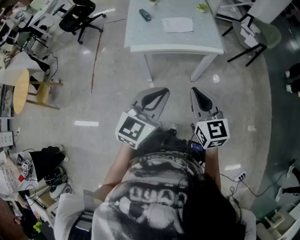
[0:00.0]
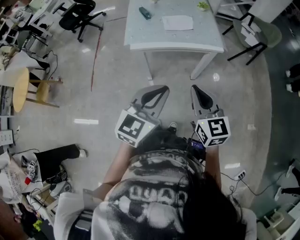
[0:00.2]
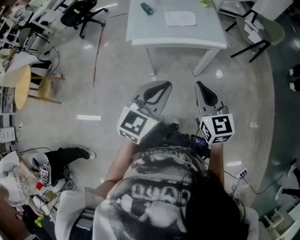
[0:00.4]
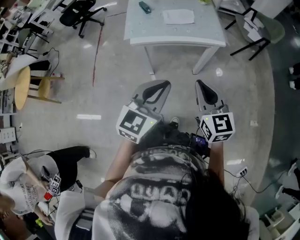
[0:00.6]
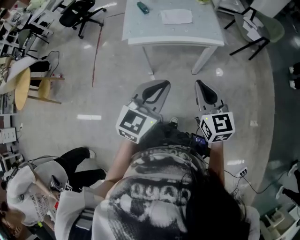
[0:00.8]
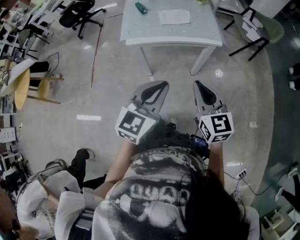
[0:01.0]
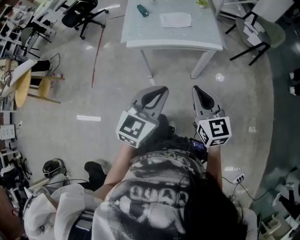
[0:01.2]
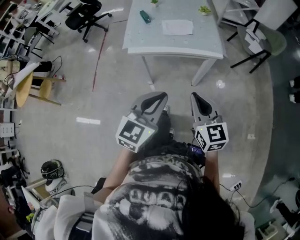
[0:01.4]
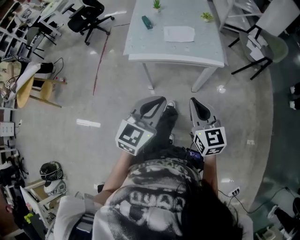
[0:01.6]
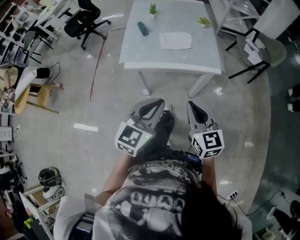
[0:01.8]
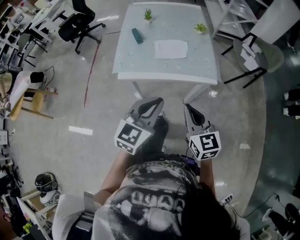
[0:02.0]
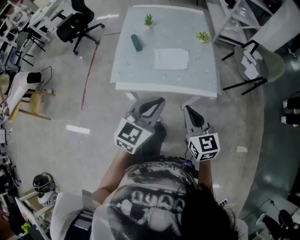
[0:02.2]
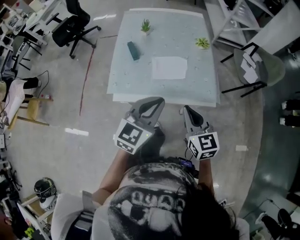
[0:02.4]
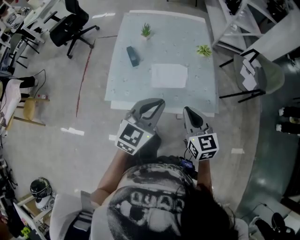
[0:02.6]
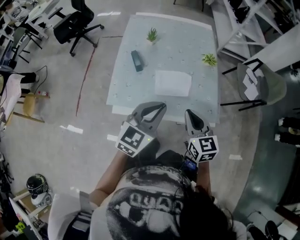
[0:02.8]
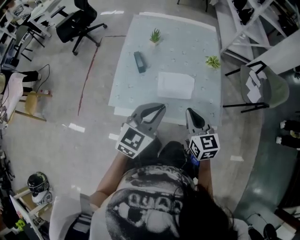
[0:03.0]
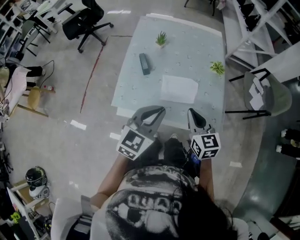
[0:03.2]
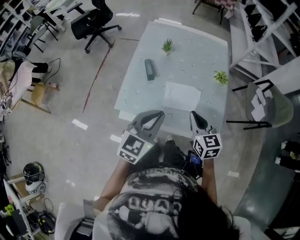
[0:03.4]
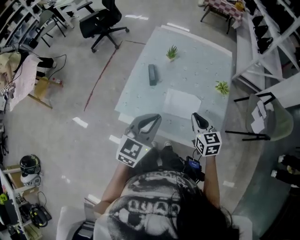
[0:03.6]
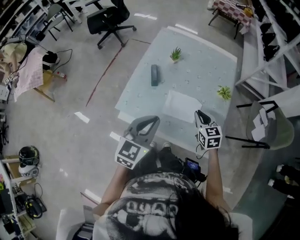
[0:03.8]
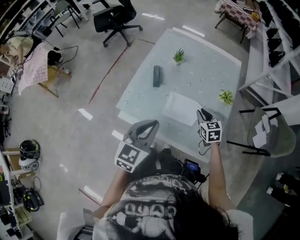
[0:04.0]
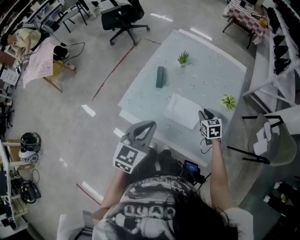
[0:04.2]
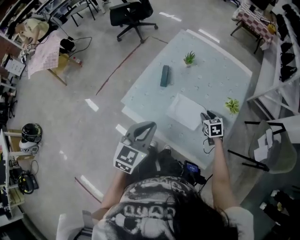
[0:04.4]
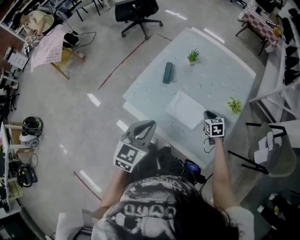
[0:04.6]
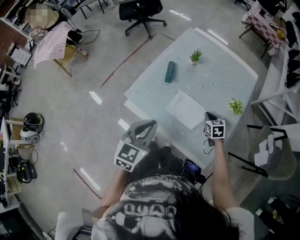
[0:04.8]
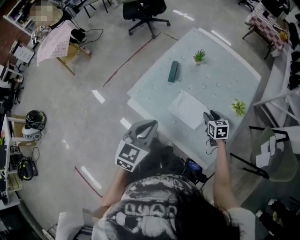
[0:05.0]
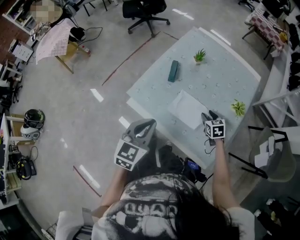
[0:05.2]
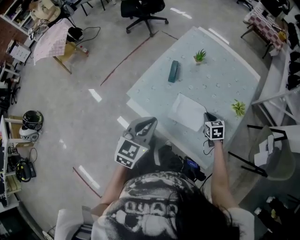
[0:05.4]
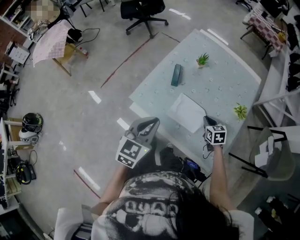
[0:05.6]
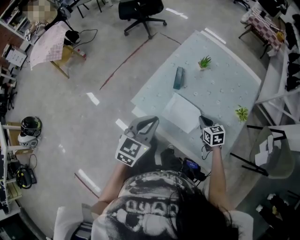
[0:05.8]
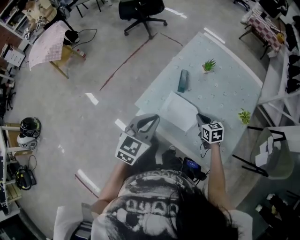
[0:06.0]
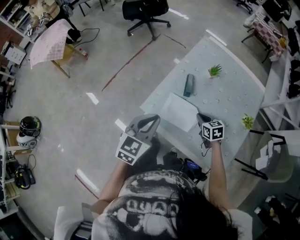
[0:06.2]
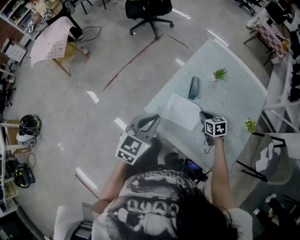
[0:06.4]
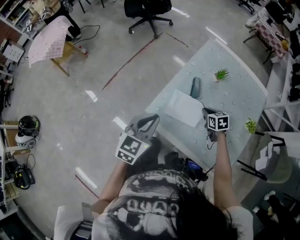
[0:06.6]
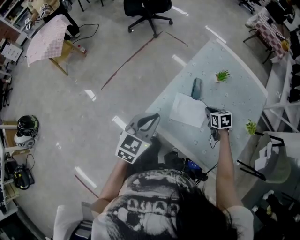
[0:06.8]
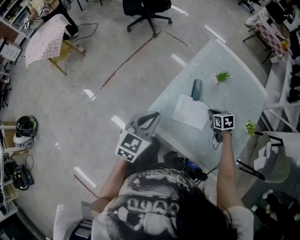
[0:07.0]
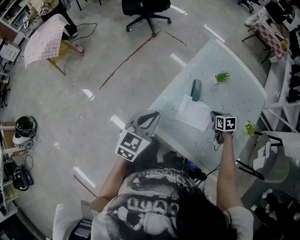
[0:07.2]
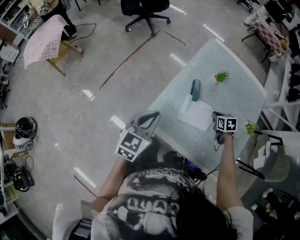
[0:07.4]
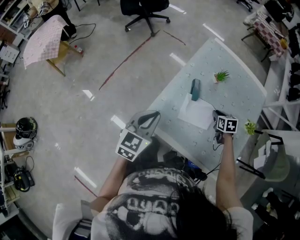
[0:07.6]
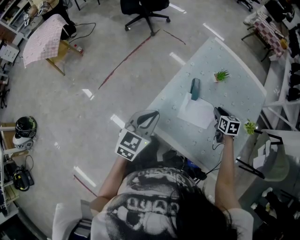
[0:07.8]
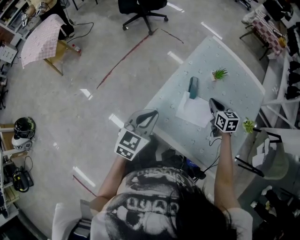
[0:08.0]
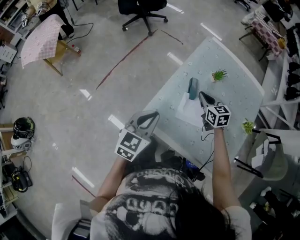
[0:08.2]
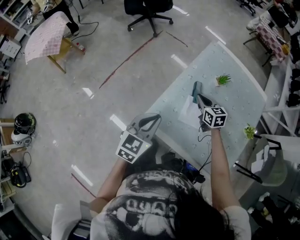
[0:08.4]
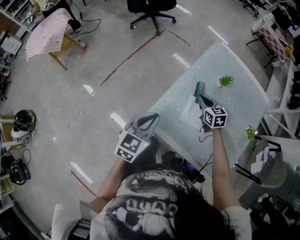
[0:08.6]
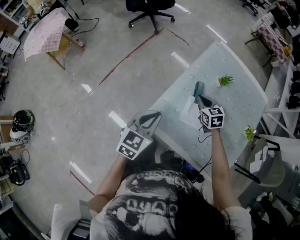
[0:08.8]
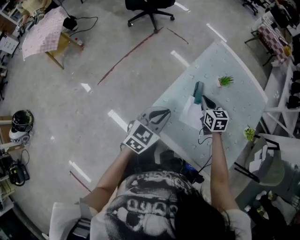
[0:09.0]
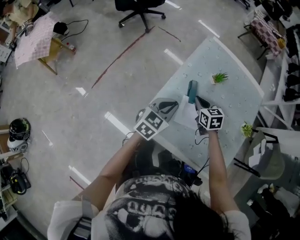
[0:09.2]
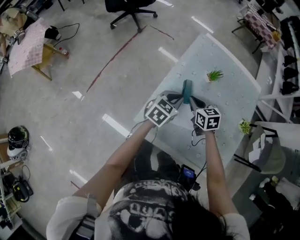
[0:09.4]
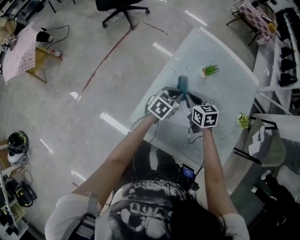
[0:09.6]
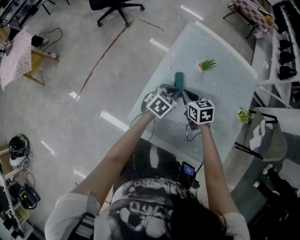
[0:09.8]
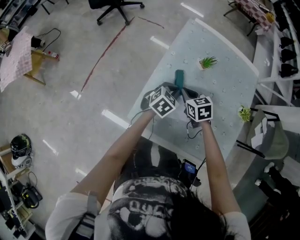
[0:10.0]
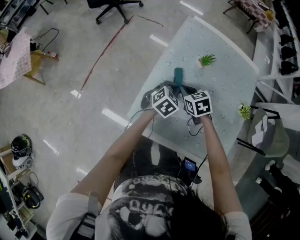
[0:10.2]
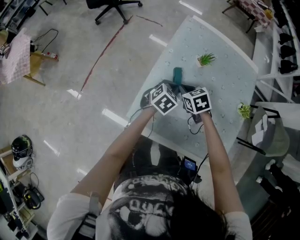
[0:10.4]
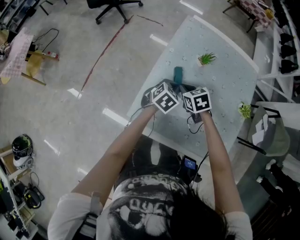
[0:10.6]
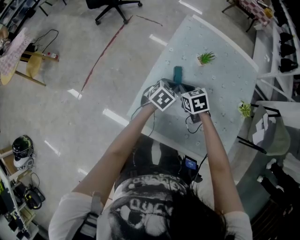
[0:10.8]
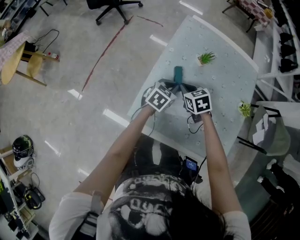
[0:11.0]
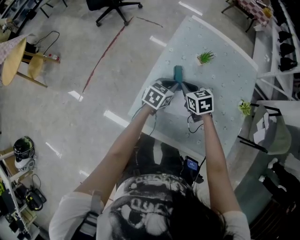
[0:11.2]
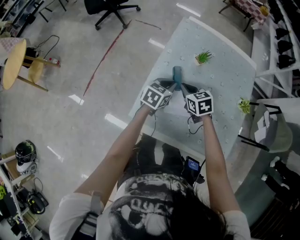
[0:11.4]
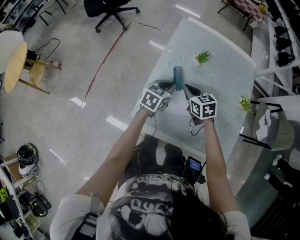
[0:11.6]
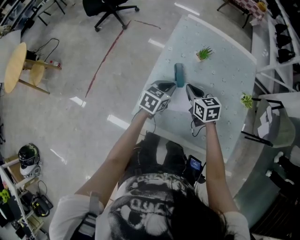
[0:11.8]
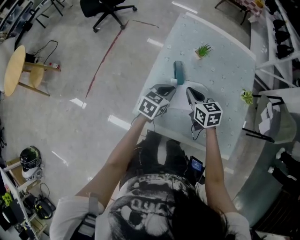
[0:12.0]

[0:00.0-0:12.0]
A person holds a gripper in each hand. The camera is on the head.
0:00.0 to 0:01.6: The left gripper changes place by about 5 cm. The right gripper ends up some 5 cm from where it was.
0:01.6 to 0:03.0: The two grippers go roughly 35 cm forward.
0:03.0 to 0:04.4: The right gripper changes place by some 30 cm, changes its angle by some 40 degrees, and opens. Meanwhile the left gripper rotates approximately 30 degrees.
0:04.4 to 0:06.0: The right gripper moves to the left, about 15 cm, and closes up. Meanwhile the left gripper shifts some 10 cm to the left and forward.
0:06.0 to 0:07.6: The right gripper shifts roughly 10 cm forward; the left gripper moves to the left and forward, approximately 10 cm.
0:07.6 to 0:09.0: The right gripper travels to the left and upward by approximately 15 cm, and changes its angle by roughly 20 degrees.
0:09.0 to 0:10.4: The left gripper goes roughly 20 cm forward, to the right and downward, and rotates about 30 degrees.
0:10.4 to 0:12.0: The right gripper shifts some 10 cm upward and backward, and changes its angle by roughly 30 degrees. Meanwhile the left gripper moves backward, approximately 5 cm.

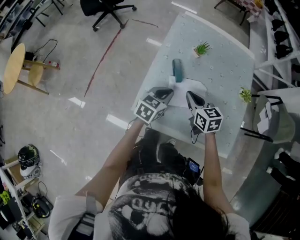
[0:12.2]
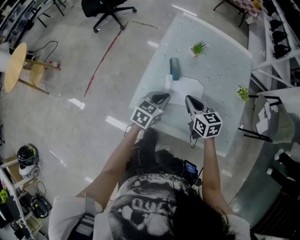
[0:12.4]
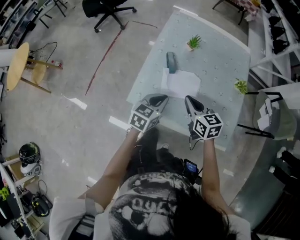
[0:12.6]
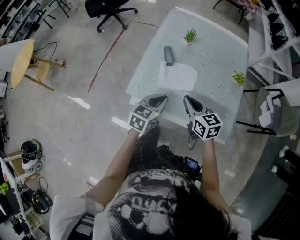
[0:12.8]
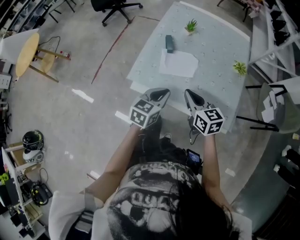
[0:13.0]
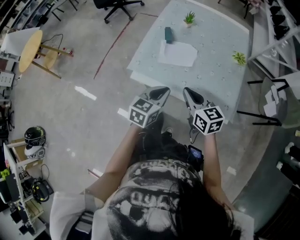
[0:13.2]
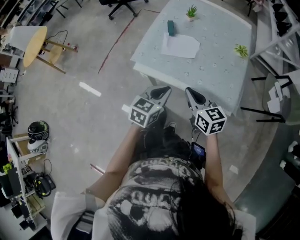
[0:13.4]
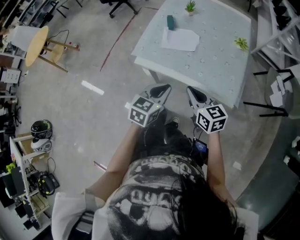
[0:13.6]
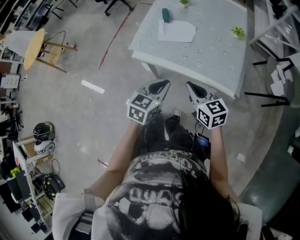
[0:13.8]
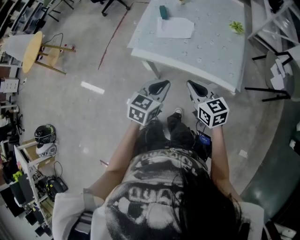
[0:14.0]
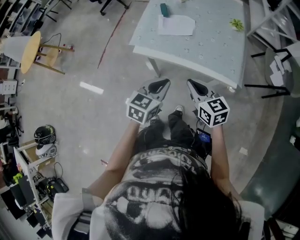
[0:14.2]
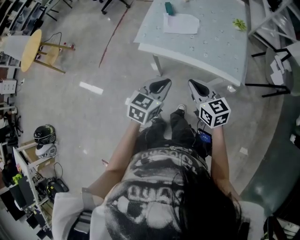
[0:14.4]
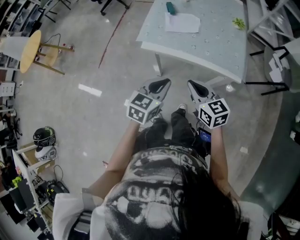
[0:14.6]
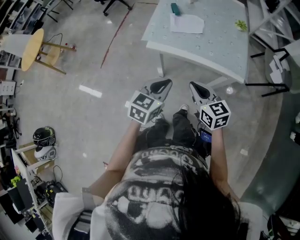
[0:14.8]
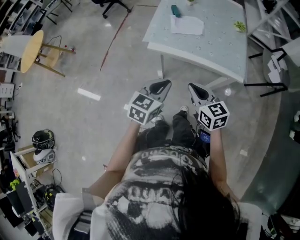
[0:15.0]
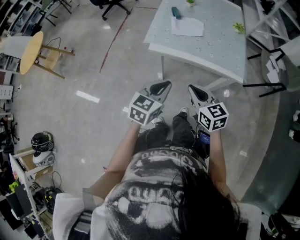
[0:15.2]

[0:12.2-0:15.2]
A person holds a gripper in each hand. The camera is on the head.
0:12.2 to 0:13.8: The two grippers go approximately 35 cm backward.
0:13.8 to 0:15.2: Both grippers move to the left and backward, some 15 cm.

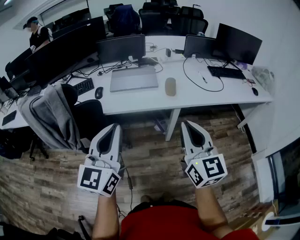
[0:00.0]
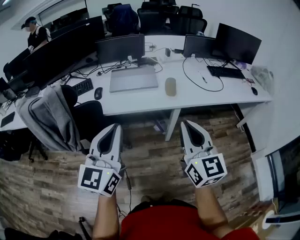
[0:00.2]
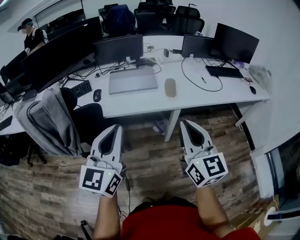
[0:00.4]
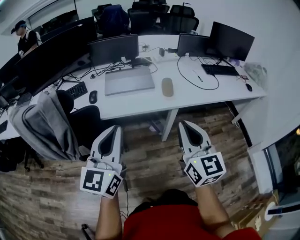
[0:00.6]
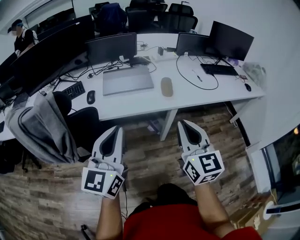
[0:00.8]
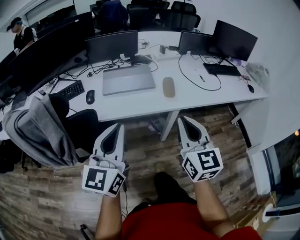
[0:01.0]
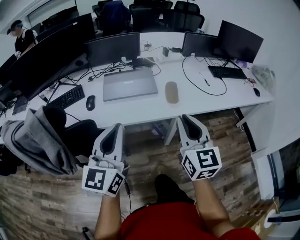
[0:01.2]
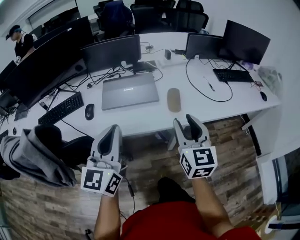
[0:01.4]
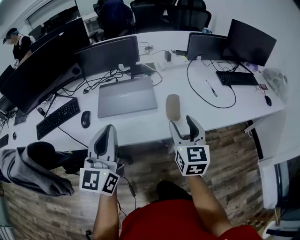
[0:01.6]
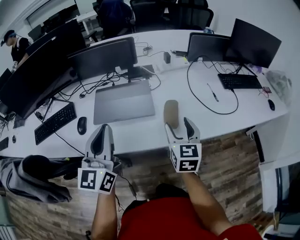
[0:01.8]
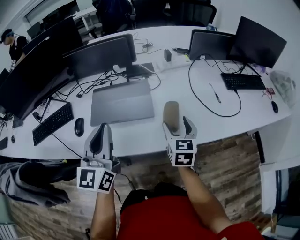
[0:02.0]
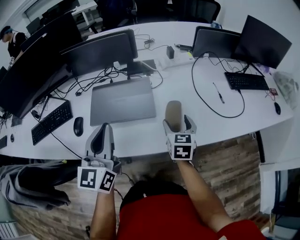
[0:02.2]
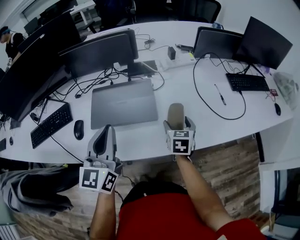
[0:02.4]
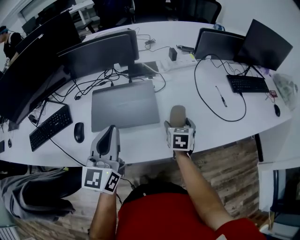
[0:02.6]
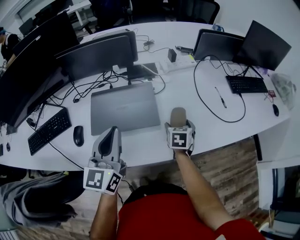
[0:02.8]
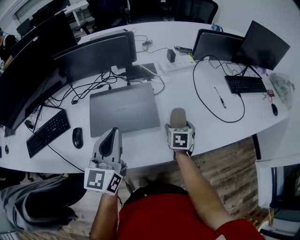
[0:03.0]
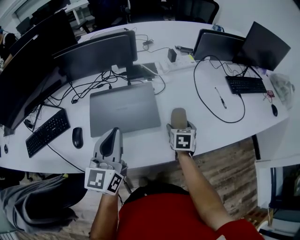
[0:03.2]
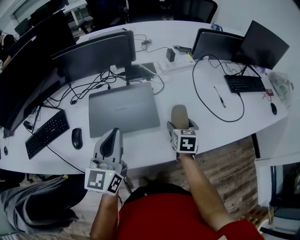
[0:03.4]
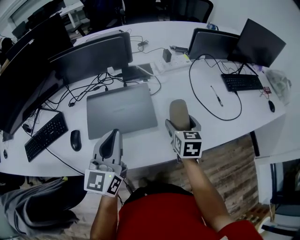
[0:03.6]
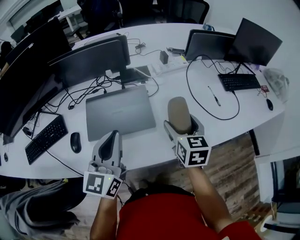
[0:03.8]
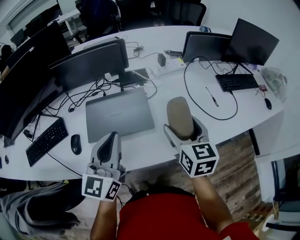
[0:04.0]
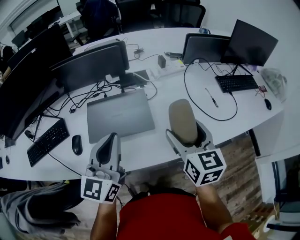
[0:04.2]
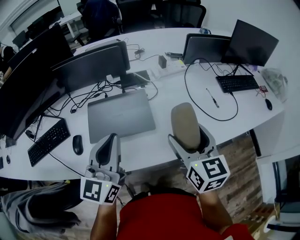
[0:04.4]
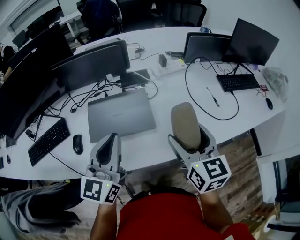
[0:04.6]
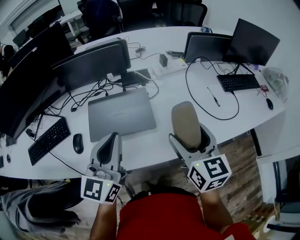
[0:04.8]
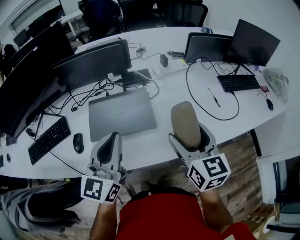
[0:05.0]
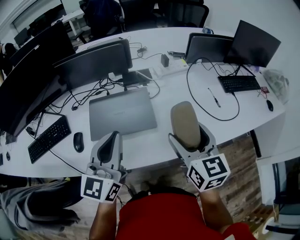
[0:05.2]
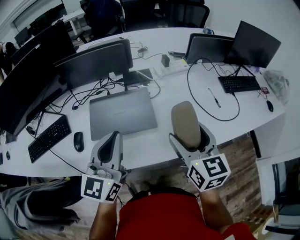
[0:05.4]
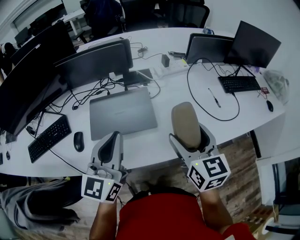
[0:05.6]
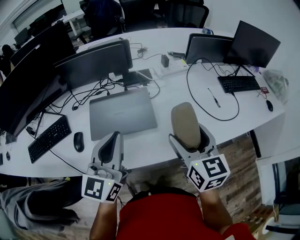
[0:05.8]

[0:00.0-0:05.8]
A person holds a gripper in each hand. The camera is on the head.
0:00.0 to 0:01.4: Both grippers move forward, roughly 20 cm. The right gripper opens its fingers.
0:01.4 to 0:02.8: The right gripper moves forward and downward, approximately 35 cm, points its fingers roughly 40 degrees further downward, and opens up. The left gripper is displaced forward by roughly 25 cm.
0:02.8 to 0:04.4: The right gripper travels upward and backward by approximately 25 cm, and points its fingers about 30 degrees further upward; the left gripper moves roughly 5 cm.
0:04.4 to 0:05.8: The two grippers keep their place.

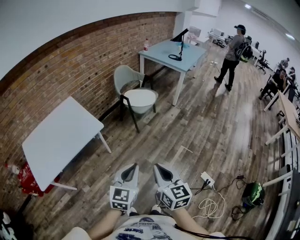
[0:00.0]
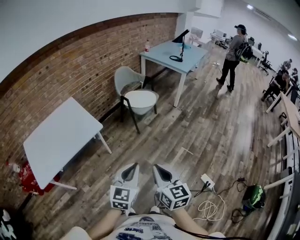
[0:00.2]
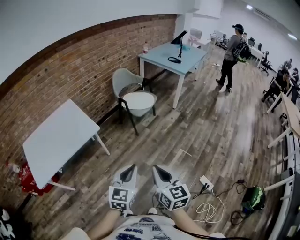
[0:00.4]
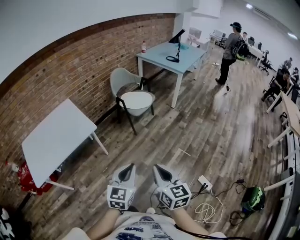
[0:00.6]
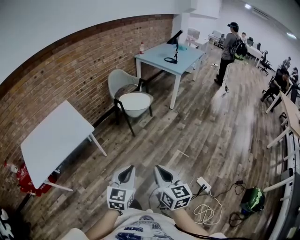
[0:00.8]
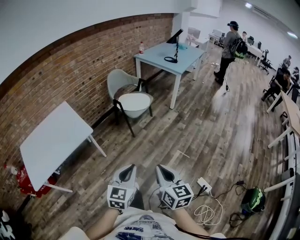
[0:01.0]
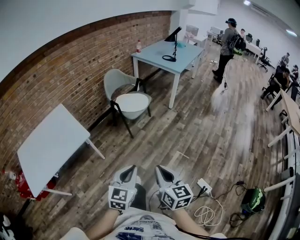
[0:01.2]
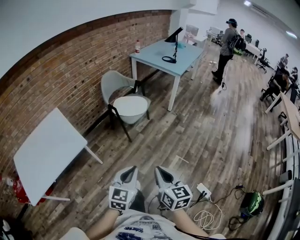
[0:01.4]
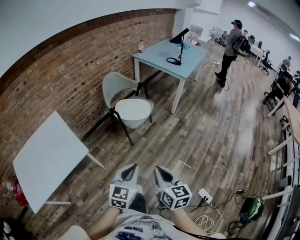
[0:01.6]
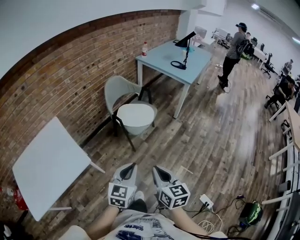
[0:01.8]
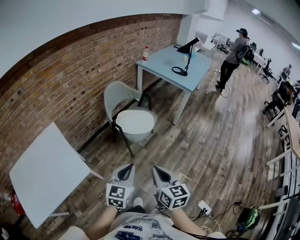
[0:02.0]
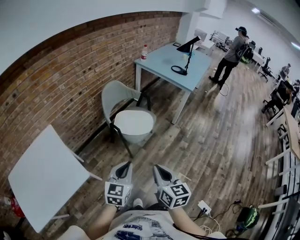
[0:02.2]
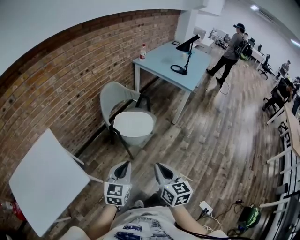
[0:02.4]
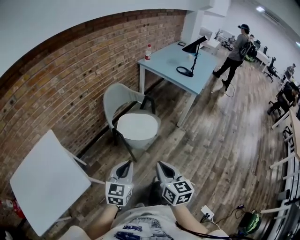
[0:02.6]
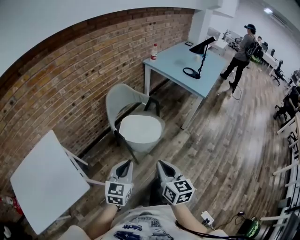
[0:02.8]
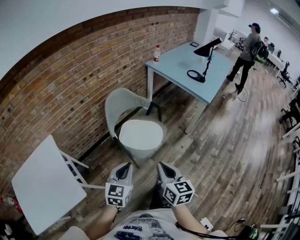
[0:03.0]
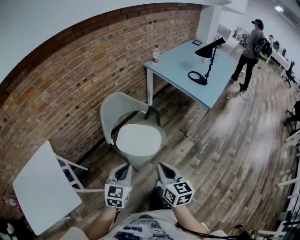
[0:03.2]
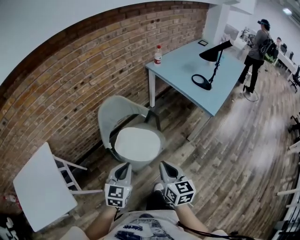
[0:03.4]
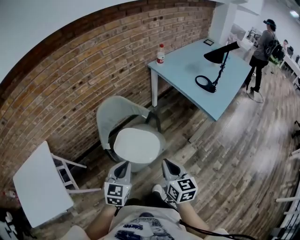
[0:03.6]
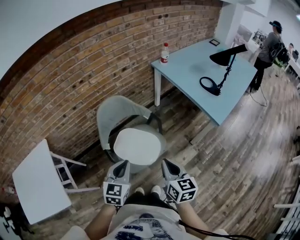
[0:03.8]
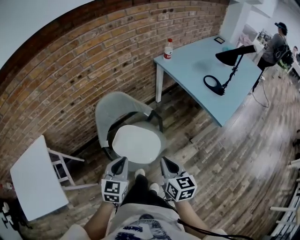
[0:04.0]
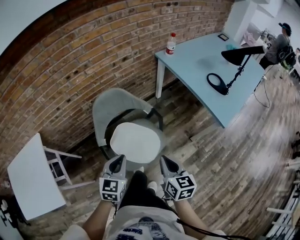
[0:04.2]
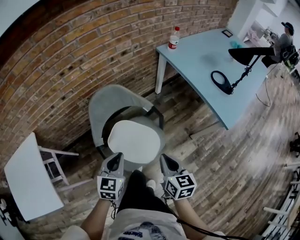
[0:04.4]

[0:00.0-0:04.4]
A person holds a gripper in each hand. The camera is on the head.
0:00.0 to 0:01.4: The two grippers go approximately 20 cm forward and to the right.
0:01.4 to 0:03.0: The two grippers travel together, forward, approximately 50 cm.
0:03.0 to 0:04.4: The left gripper travels forward by some 30 cm; the right gripper goes some 35 cm forward and to the right.
